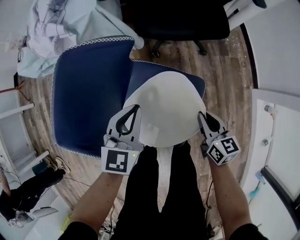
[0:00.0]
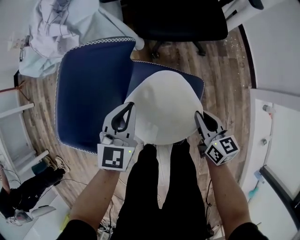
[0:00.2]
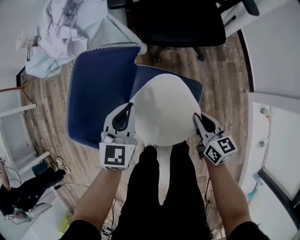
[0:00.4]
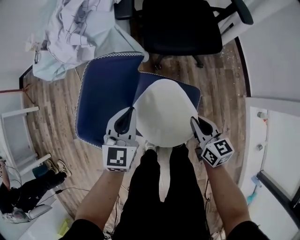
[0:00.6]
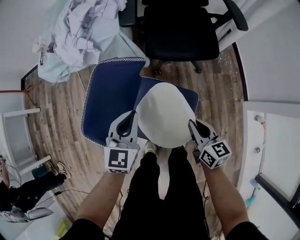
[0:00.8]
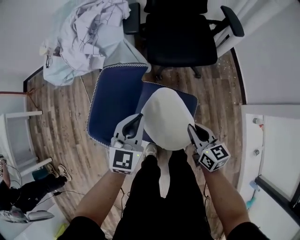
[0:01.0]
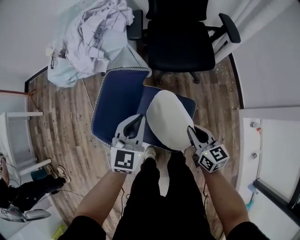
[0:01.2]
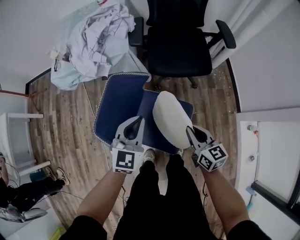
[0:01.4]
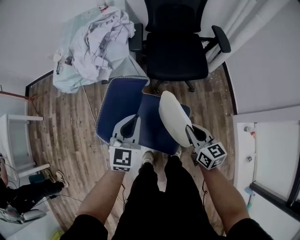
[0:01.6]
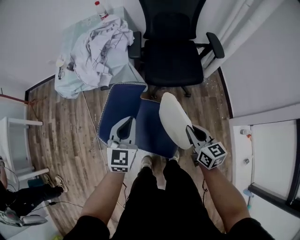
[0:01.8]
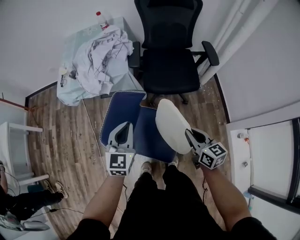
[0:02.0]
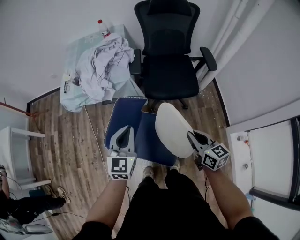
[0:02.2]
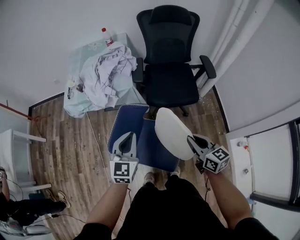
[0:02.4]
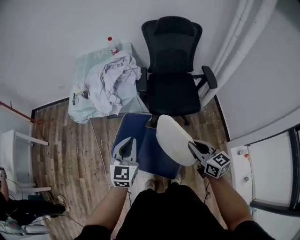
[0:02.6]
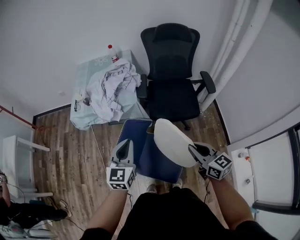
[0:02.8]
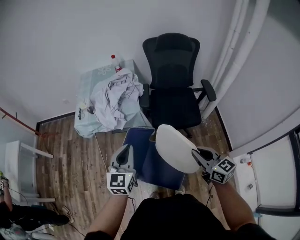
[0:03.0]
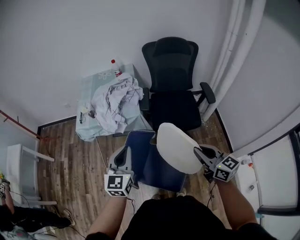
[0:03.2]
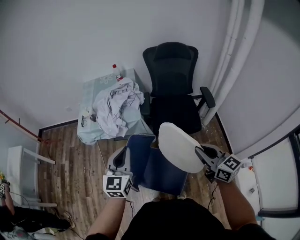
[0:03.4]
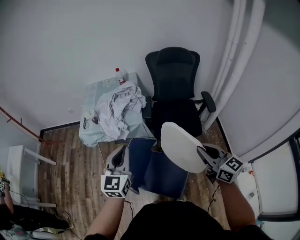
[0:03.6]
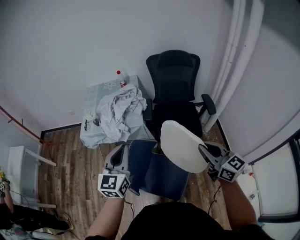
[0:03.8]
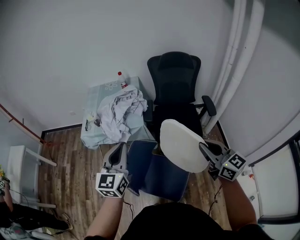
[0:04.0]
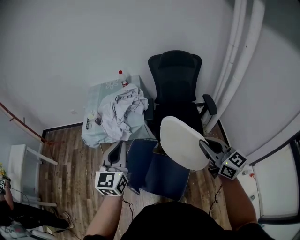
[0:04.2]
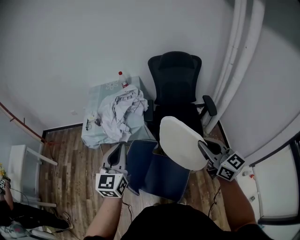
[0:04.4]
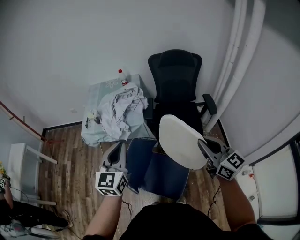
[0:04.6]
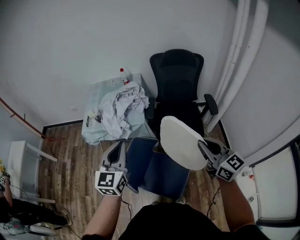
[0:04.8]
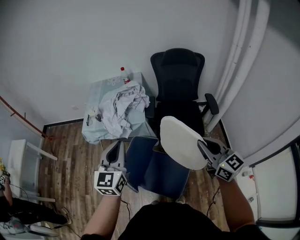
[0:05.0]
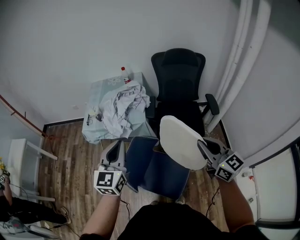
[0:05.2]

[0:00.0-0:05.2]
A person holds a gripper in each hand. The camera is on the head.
0:00.0 to 0:01.8: Both grippers travel together upward, roughly 25 cm.
0:01.8 to 0:03.4: The grippers both shift upward by some 20 cm.
0:03.4 to 0:05.2: Both grippers travel together upward, roughly 5 cm.

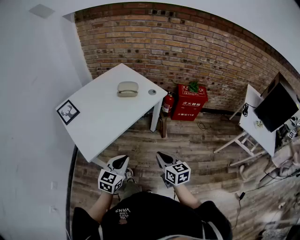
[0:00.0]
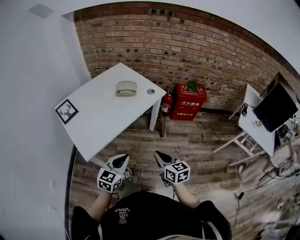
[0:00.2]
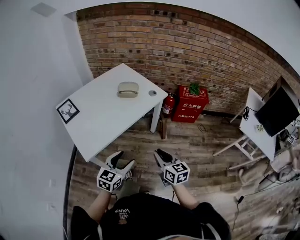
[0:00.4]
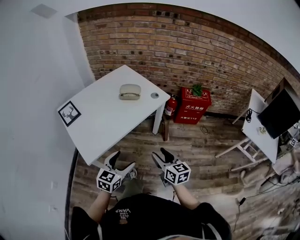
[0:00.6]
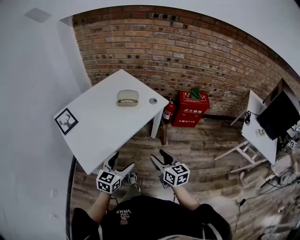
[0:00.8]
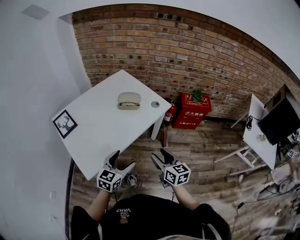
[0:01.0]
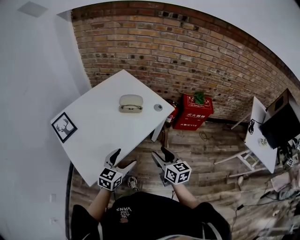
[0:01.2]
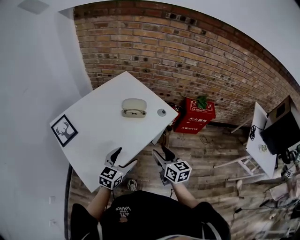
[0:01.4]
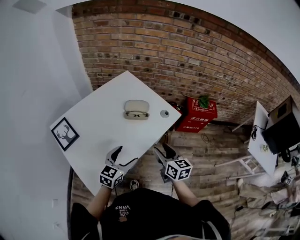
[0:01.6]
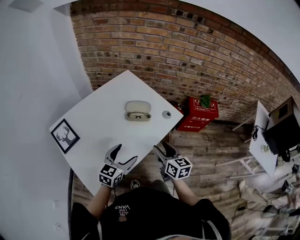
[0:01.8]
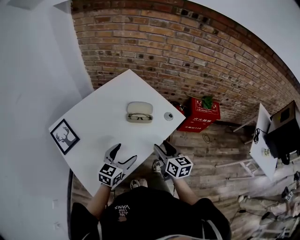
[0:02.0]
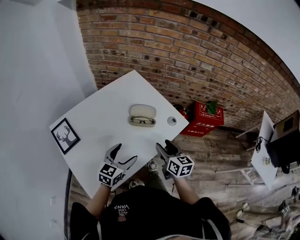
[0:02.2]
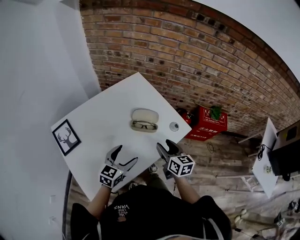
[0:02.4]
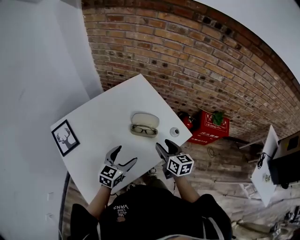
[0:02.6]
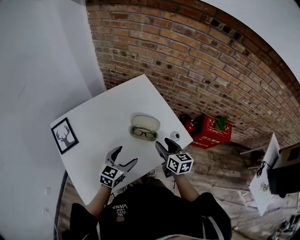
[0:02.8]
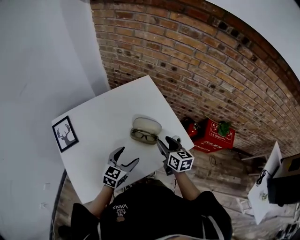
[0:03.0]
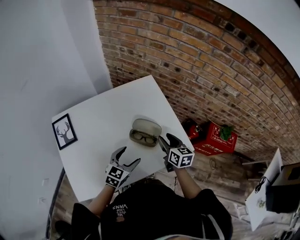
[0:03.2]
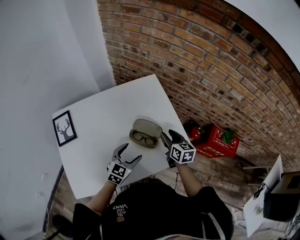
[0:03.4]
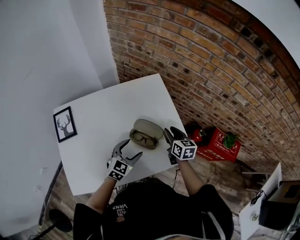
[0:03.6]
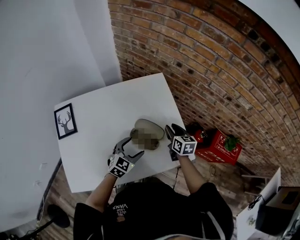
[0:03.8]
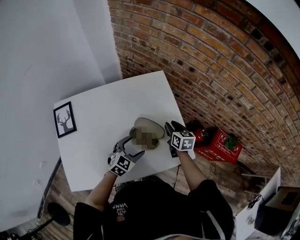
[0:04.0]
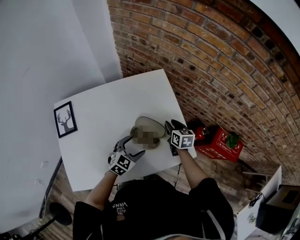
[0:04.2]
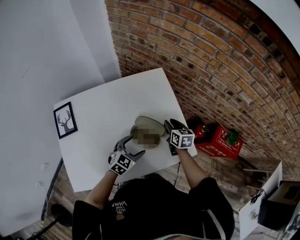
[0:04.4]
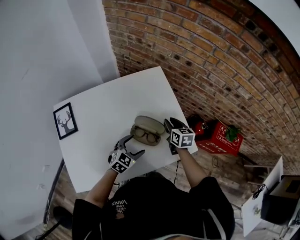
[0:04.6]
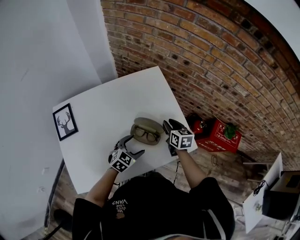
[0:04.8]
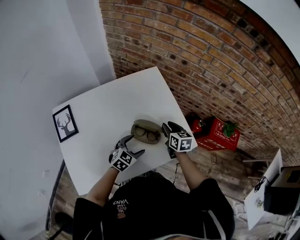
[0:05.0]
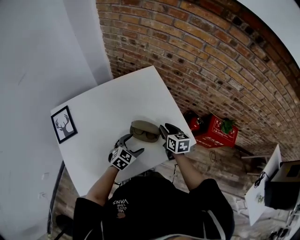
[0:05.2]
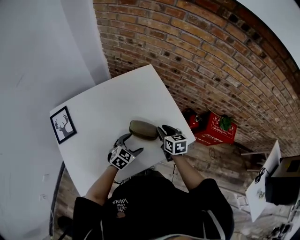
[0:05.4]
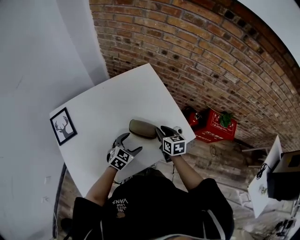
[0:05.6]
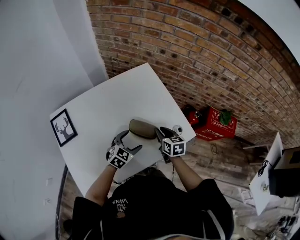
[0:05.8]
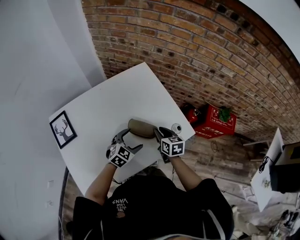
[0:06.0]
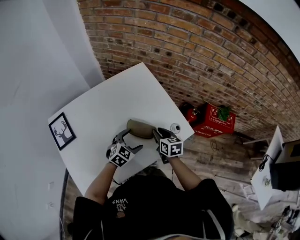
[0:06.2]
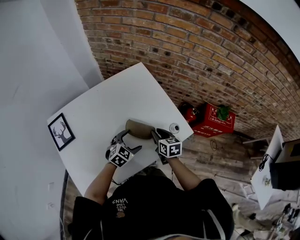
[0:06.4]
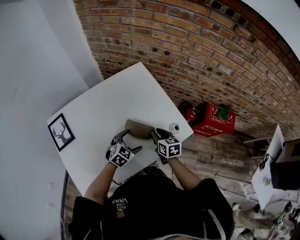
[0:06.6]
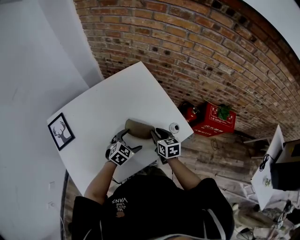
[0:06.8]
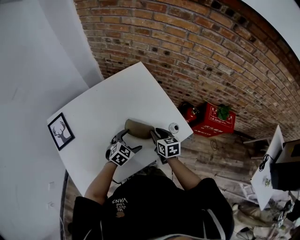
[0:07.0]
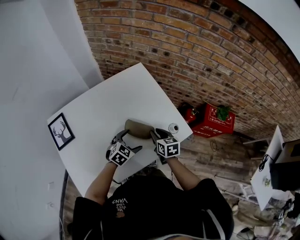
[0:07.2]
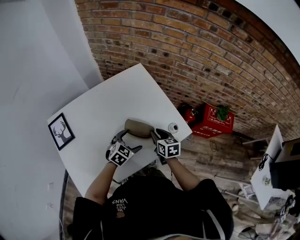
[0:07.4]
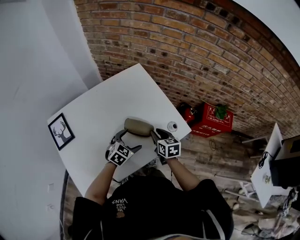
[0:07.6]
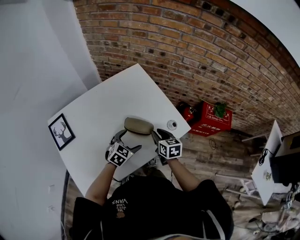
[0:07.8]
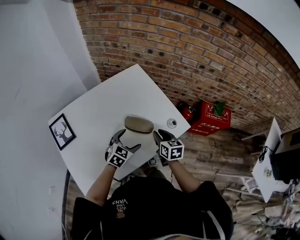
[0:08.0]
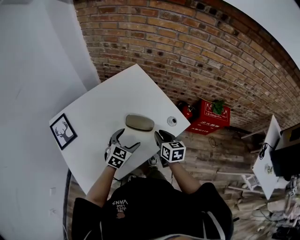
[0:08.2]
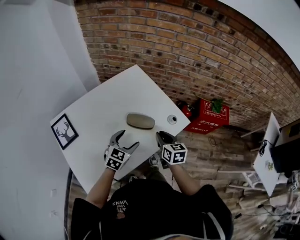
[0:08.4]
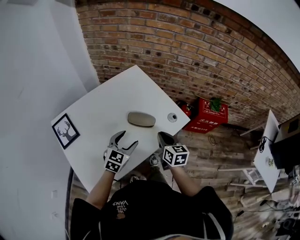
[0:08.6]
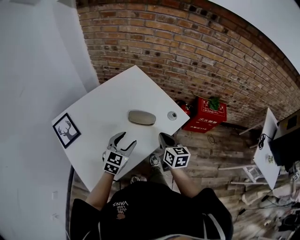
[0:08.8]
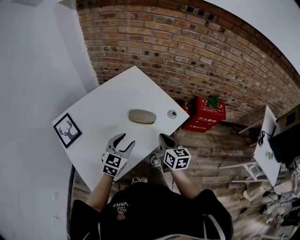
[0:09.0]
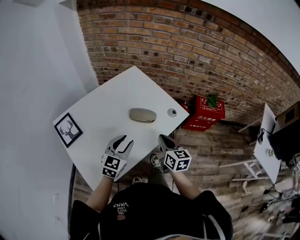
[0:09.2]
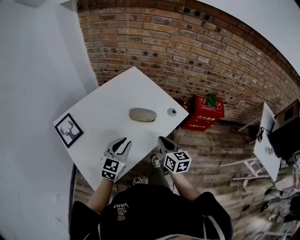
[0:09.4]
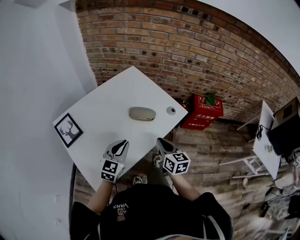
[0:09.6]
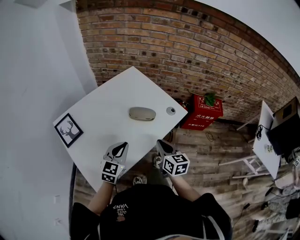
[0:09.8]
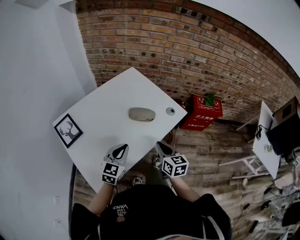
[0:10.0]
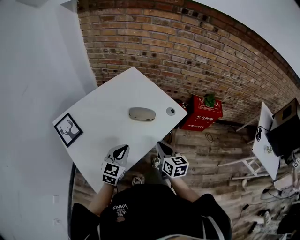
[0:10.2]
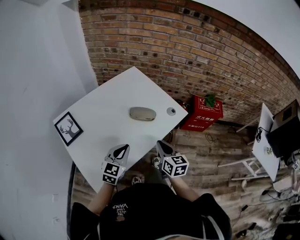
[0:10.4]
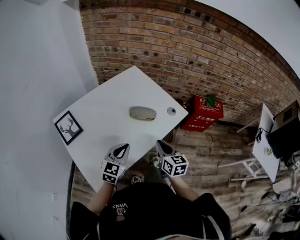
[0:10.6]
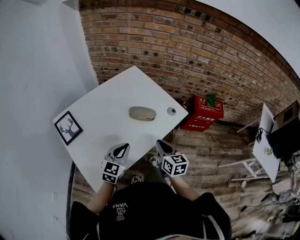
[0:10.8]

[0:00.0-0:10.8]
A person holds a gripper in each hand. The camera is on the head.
0:00.0 to 0:01.6: The grippers both shift forward by some 25 cm. The right gripper opens its fingers, while the left gripper opens.
0:01.6 to 0:03.0: The right gripper heads forward, covering some 25 cm. Meanwhile the left gripper is displaced forward by roughly 15 cm.
0:03.0 to 0:04.6: The left gripper goes about 10 cm downward and forward. Meanwhile the right gripper shifts some 15 cm forward and downward.
0:04.6 to 0:06.2: The right gripper is displaced backward by some 10 cm.
0:06.2 to 0:07.8: The grippers move only a little.
0:07.8 to 0:09.2: The right gripper moves backward and upward, roughly 15 cm, and closes up; the left gripper goes some 20 cm upward, backward and to the left, swivels some 20 degrees, and closes.
0:09.2 to 0:10.8: The grippers stay close to where they were, moving slightly.

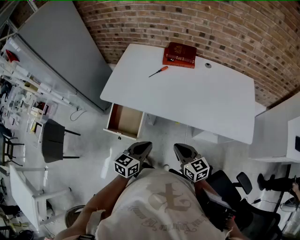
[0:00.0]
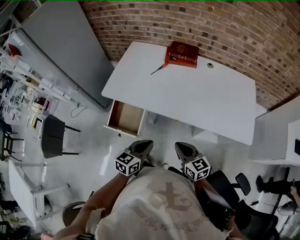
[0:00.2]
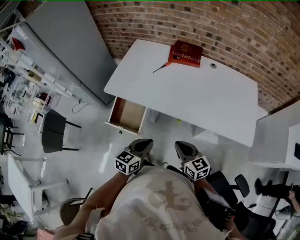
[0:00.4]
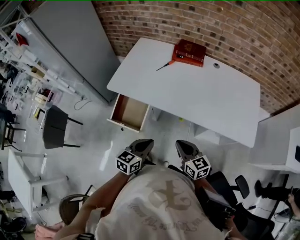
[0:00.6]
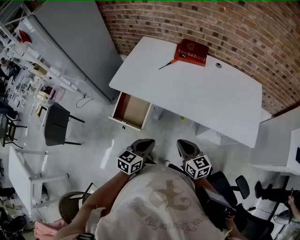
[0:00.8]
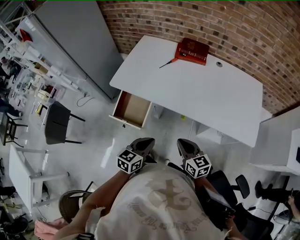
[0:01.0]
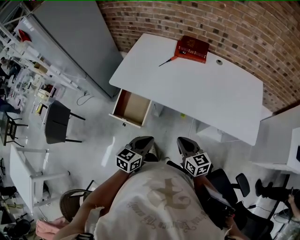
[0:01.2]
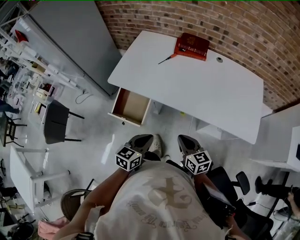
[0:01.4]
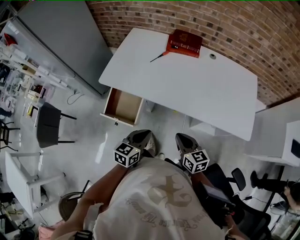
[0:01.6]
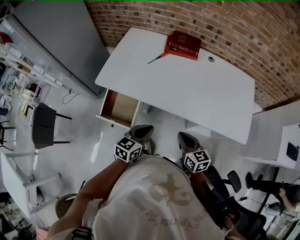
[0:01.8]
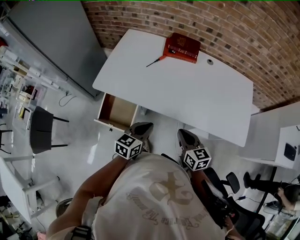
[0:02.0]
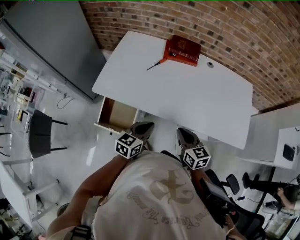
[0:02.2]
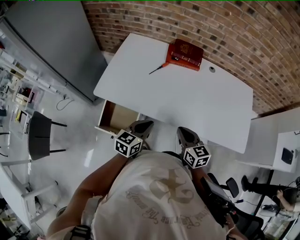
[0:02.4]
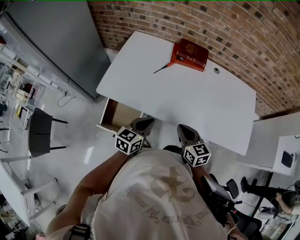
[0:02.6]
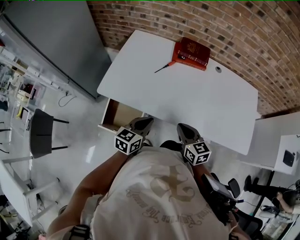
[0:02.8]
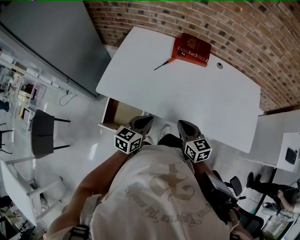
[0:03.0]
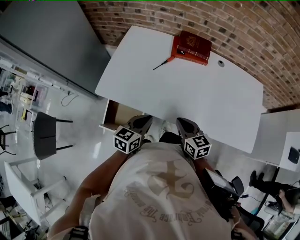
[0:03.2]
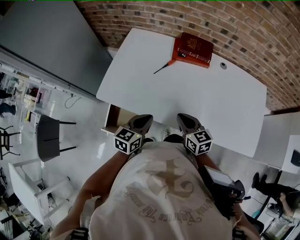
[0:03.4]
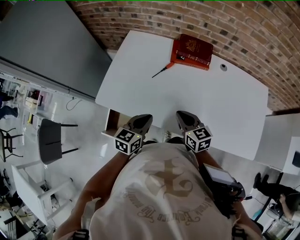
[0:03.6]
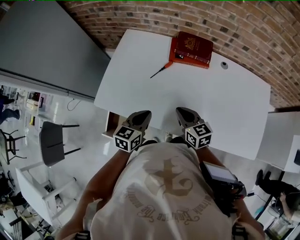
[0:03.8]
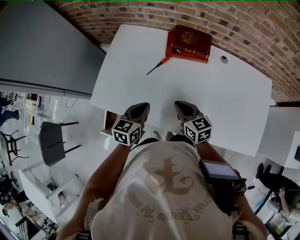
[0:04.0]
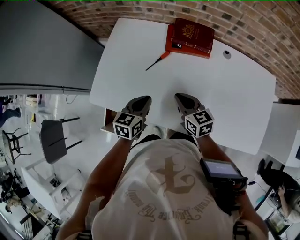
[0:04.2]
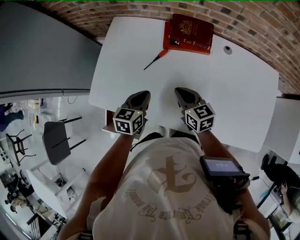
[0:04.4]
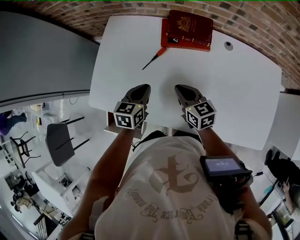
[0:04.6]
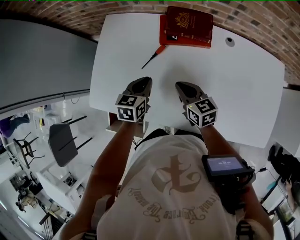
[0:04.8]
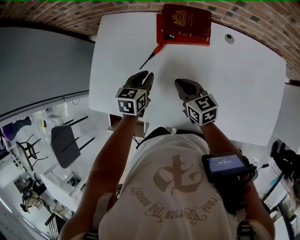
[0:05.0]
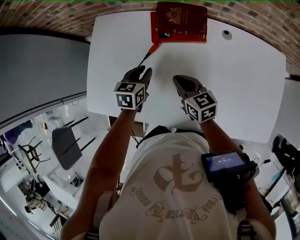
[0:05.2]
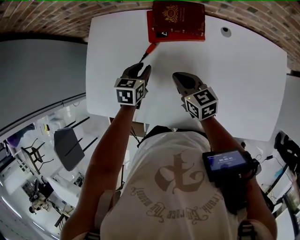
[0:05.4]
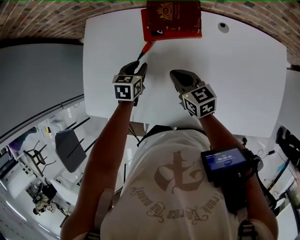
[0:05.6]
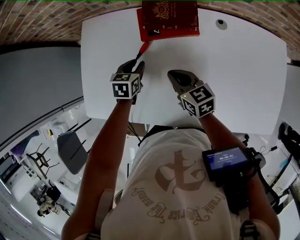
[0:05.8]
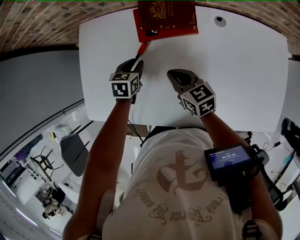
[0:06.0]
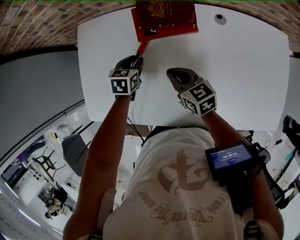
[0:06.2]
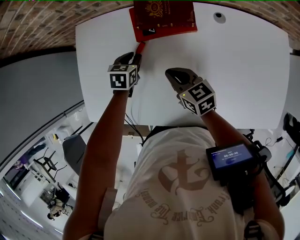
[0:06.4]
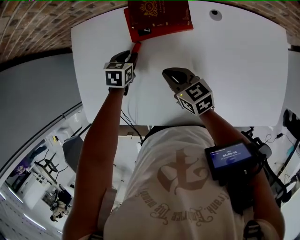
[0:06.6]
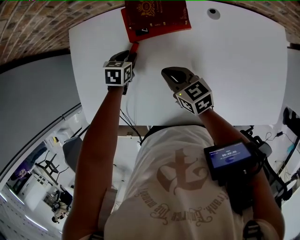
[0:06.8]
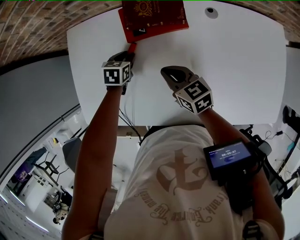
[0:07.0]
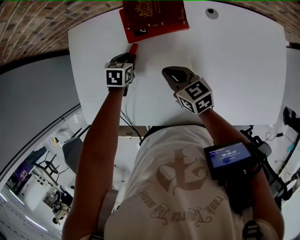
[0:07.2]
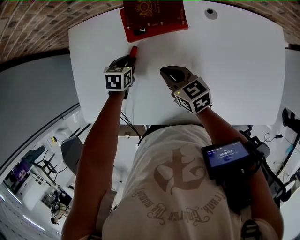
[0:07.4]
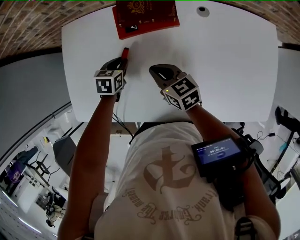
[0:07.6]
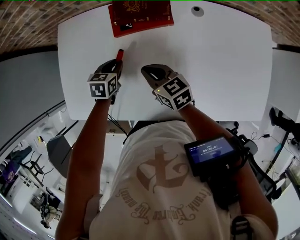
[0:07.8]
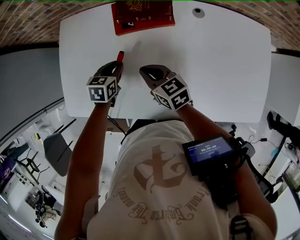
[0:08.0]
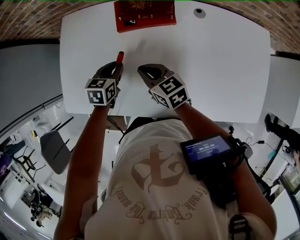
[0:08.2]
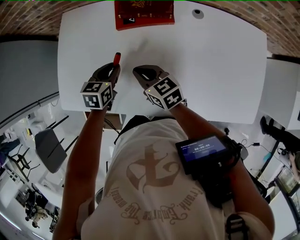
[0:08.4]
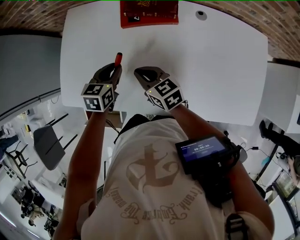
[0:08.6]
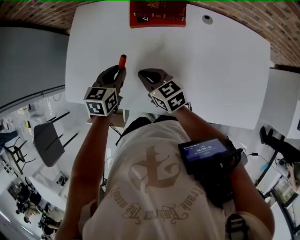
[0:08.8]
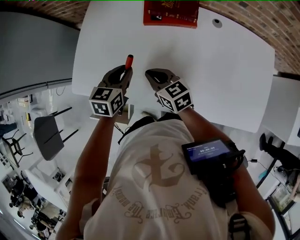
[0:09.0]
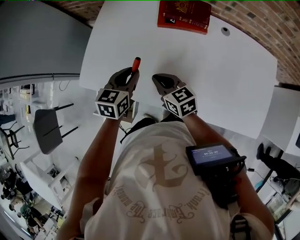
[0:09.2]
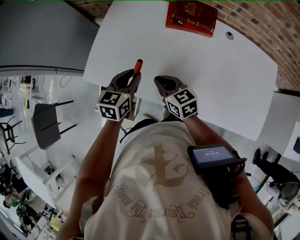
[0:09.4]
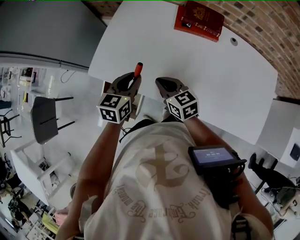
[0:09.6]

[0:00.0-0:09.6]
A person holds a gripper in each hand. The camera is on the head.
0:00.0 to 0:01.6: The grippers make only small movements.
0:01.6 to 0:03.2: The two grippers go roughly 20 cm forward.
0:03.2 to 0:04.8: Both grippers move forward, some 25 cm.
0:04.8 to 0:06.4: The right gripper changes place by some 5 cm. The left gripper is displaced forward and downward by some 15 cm, swivels about 20 degrees, and opens its fingers.
0:06.4 to 0:08.0: The left gripper goes roughly 10 cm backward.
0:08.0 to 0:09.6: The left gripper shifts approximately 25 cm backward, upward and to the left, and changes its angle by approximately 30 degrees. The right gripper is displaced to the left and backward by about 20 cm.
